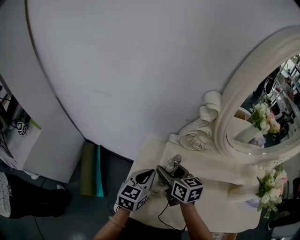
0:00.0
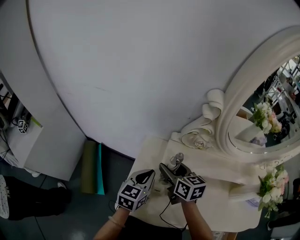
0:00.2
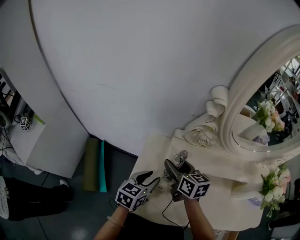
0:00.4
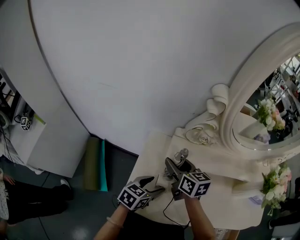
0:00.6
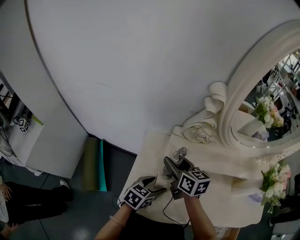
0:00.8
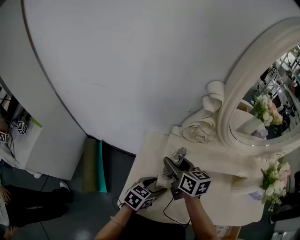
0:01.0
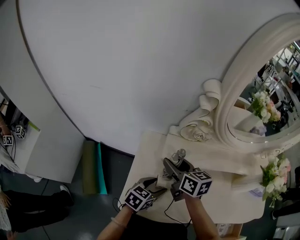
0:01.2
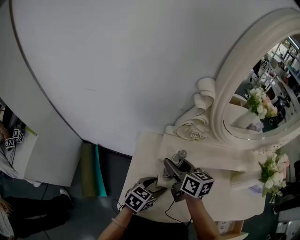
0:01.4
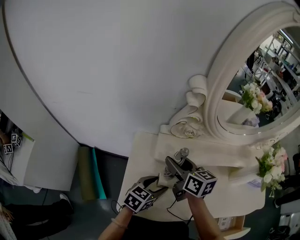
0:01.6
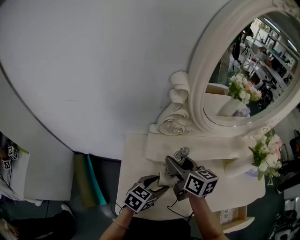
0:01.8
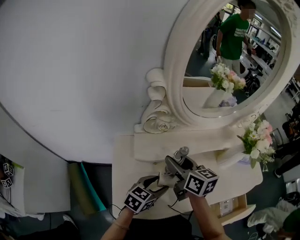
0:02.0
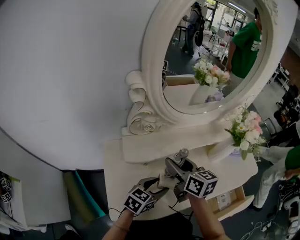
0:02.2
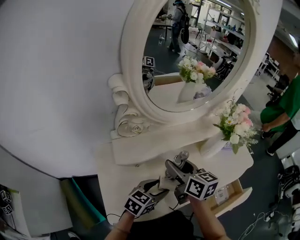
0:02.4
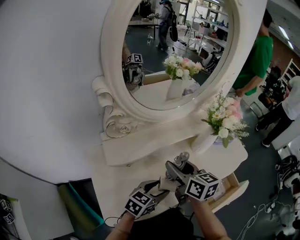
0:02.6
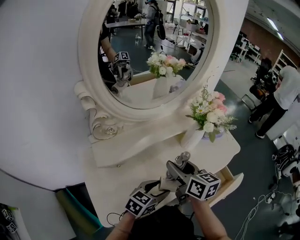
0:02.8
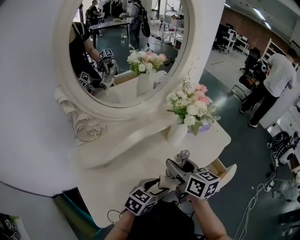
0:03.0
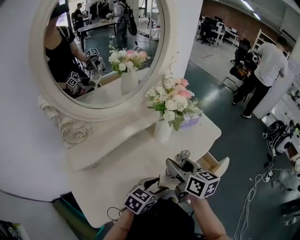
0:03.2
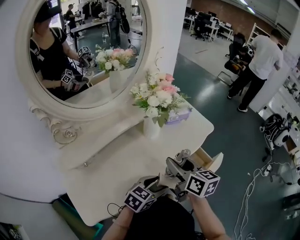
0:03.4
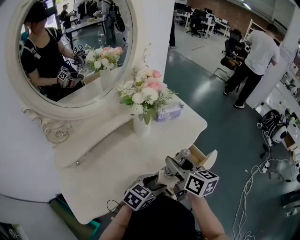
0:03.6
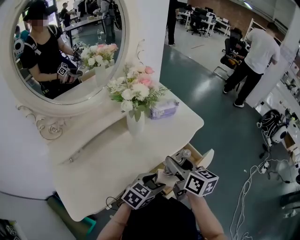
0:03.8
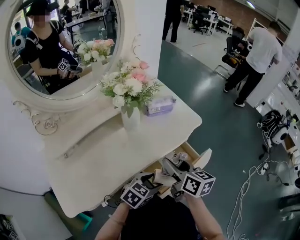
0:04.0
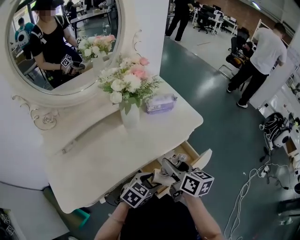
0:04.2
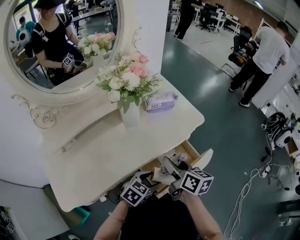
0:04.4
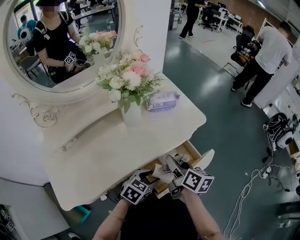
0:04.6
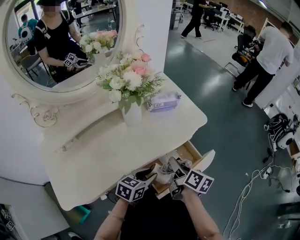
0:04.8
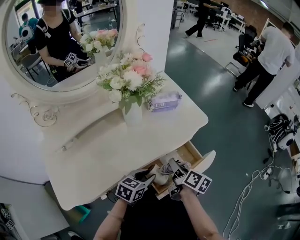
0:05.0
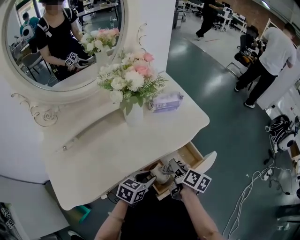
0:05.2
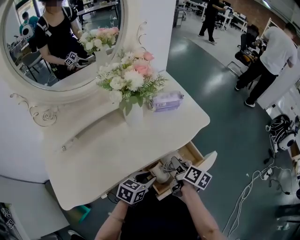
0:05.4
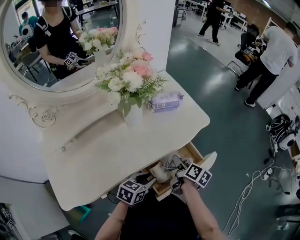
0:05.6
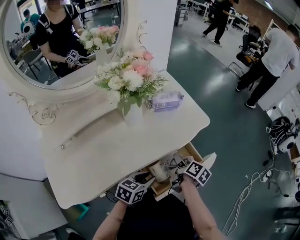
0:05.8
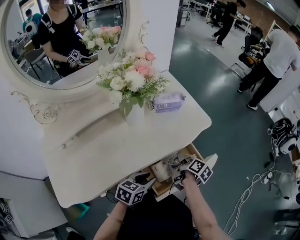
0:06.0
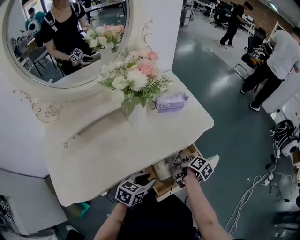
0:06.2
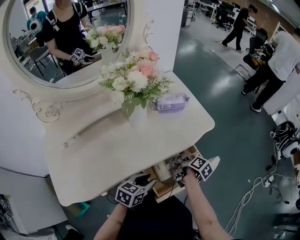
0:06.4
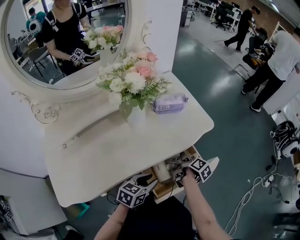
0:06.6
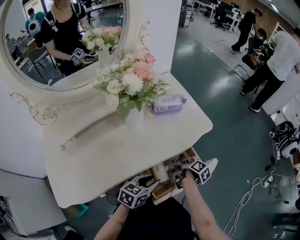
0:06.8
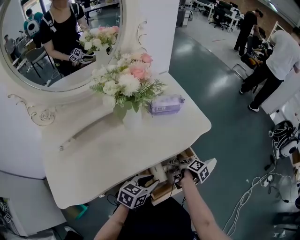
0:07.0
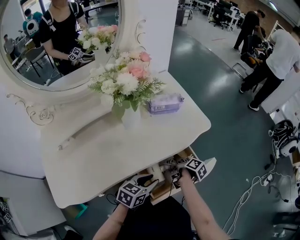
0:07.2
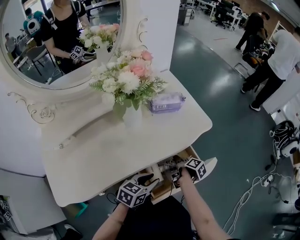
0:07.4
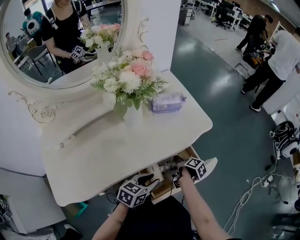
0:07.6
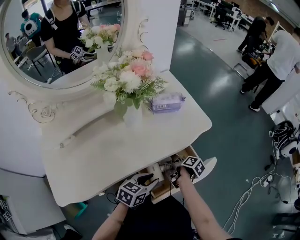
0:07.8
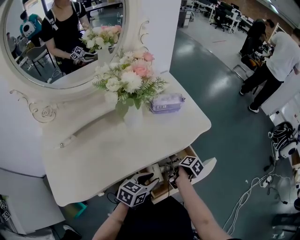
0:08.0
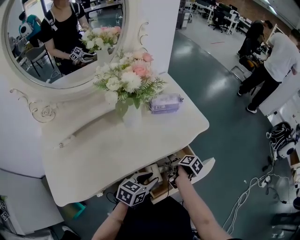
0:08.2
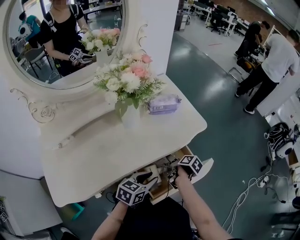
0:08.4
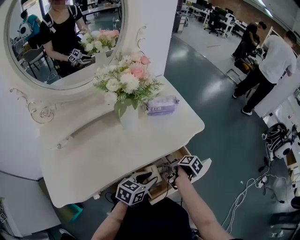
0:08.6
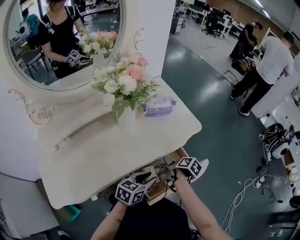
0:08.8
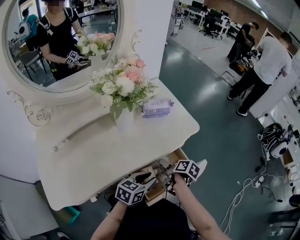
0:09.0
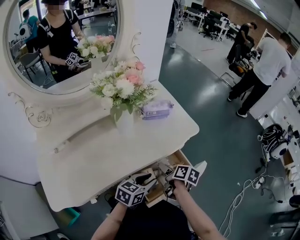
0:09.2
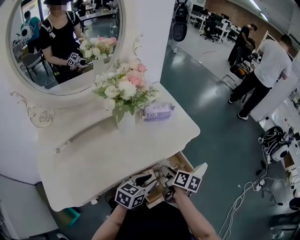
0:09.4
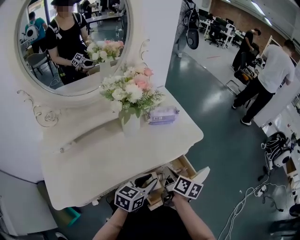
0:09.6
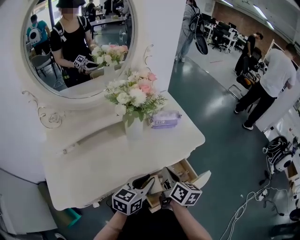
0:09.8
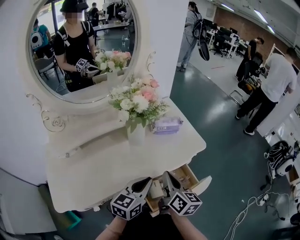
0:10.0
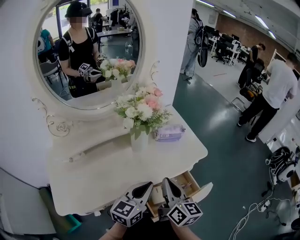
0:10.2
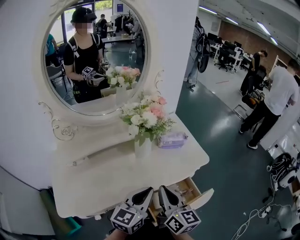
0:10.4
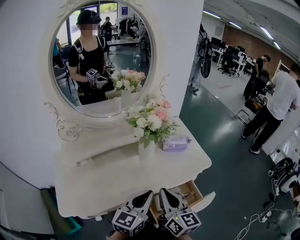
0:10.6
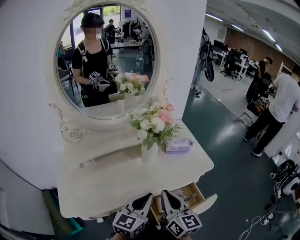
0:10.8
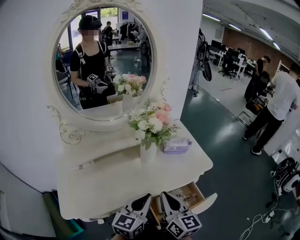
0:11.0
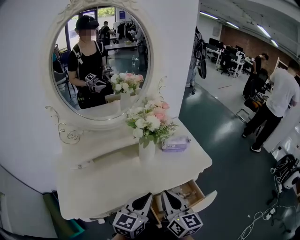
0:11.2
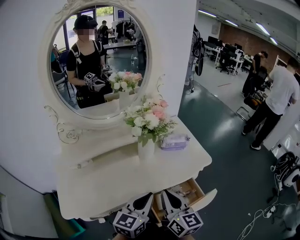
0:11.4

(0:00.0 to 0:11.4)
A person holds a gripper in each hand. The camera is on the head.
0:00.0 - 0:01.4: The left gripper moves downward, backward and to the right, roughly 10 cm, rotates some 30 degrees, and opens its fingers.
0:01.4 - 0:02.8: The right gripper ends up about 30 cm from where it was, and turns by about 40 degrees; the left gripper moves approximately 20 cm, and changes its angle by approximately 40 degrees.
0:02.8 - 0:04.2: The grippers both shift to the right by approximately 25 cm.
0:04.2 - 0:05.6: The right gripper travels downward by some 15 cm, and turns by approximately 30 degrees. The left gripper swivels some 20 degrees, and closes.
0:05.6 - 0:07.2: The right gripper goes some 10 cm downward, and swivels some 20 degrees.
0:07.2 - 0:08.6: The right gripper opens its fingers.
0:08.6 - 0:10.0: The left gripper heads upward, covering some 10 cm, rotates some 20 degrees, and closes its fingers, while the right gripper goes some 20 cm upward, tips its fingers upward by about 50 degrees, and closes.
0:10.0 - 0:11.4: The two grippers go about 5 cm upward. The right gripper swivels some 20 degrees.

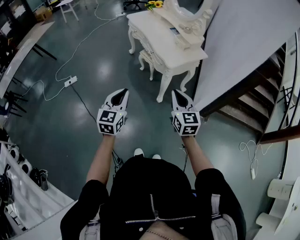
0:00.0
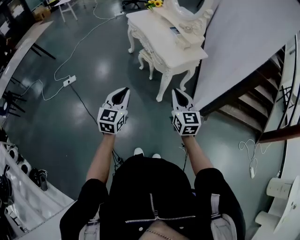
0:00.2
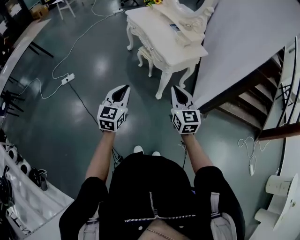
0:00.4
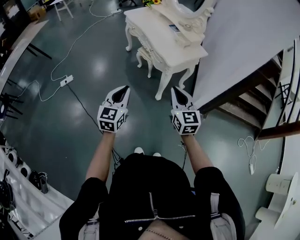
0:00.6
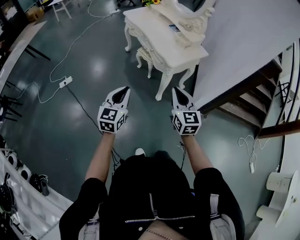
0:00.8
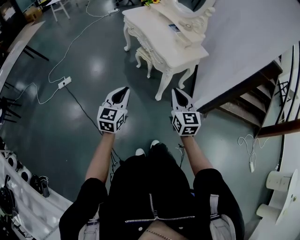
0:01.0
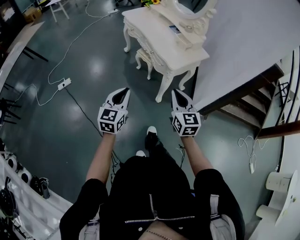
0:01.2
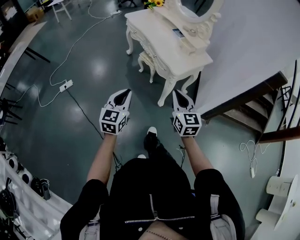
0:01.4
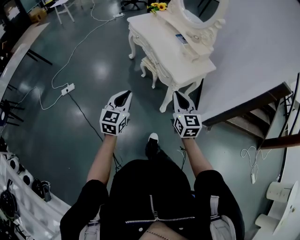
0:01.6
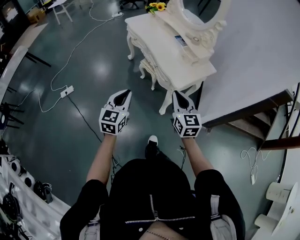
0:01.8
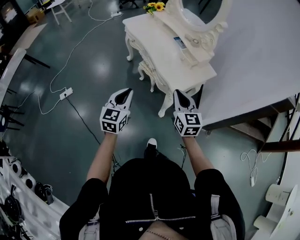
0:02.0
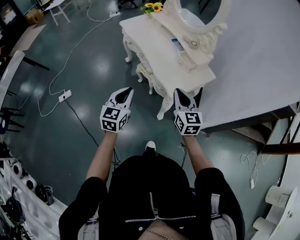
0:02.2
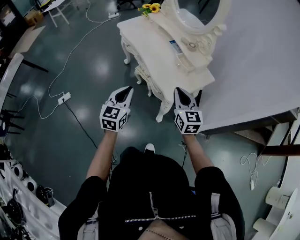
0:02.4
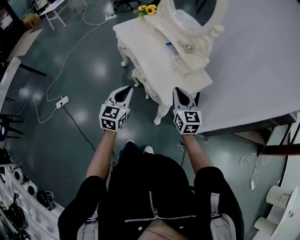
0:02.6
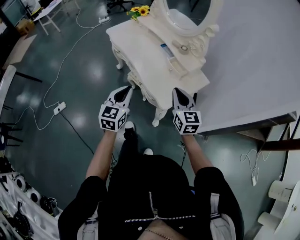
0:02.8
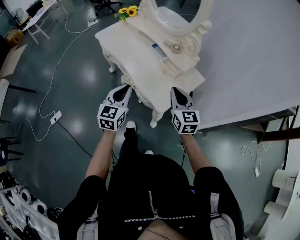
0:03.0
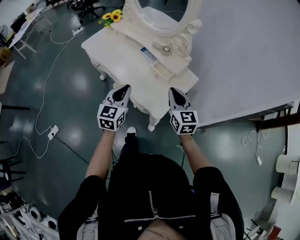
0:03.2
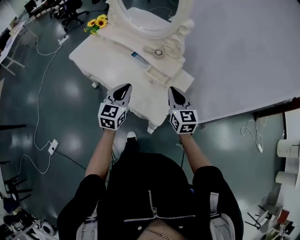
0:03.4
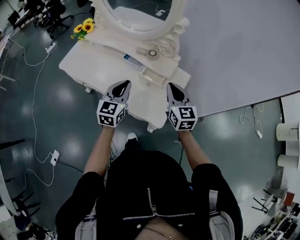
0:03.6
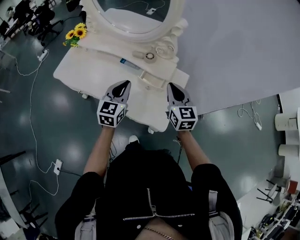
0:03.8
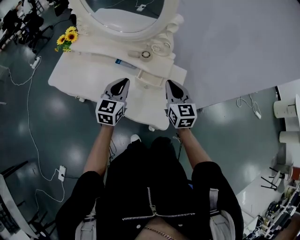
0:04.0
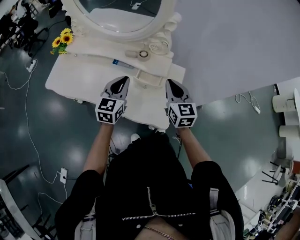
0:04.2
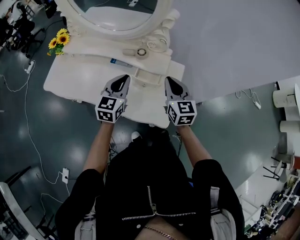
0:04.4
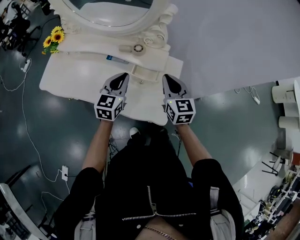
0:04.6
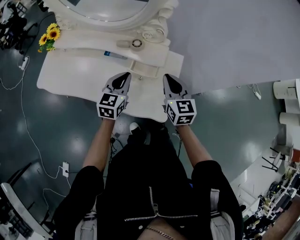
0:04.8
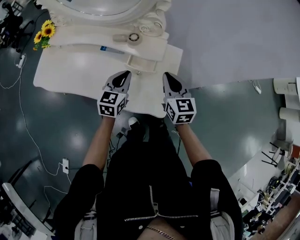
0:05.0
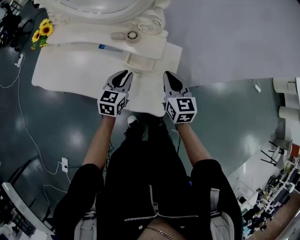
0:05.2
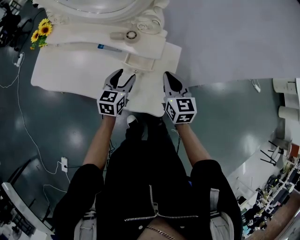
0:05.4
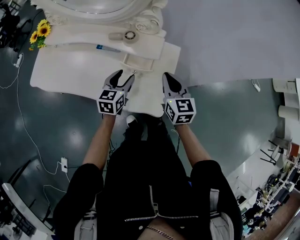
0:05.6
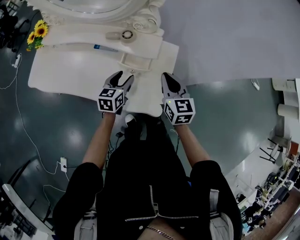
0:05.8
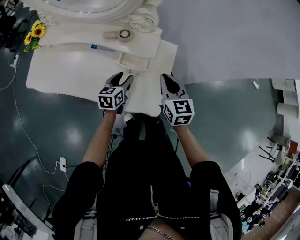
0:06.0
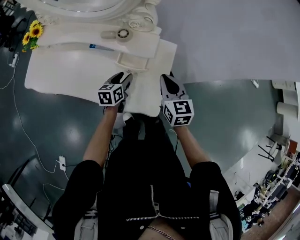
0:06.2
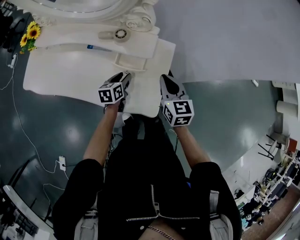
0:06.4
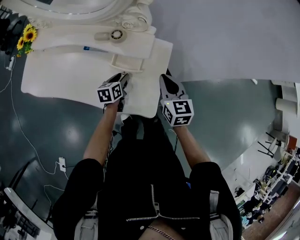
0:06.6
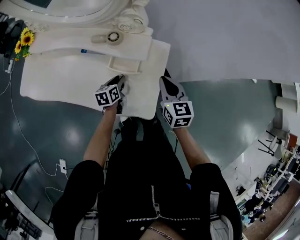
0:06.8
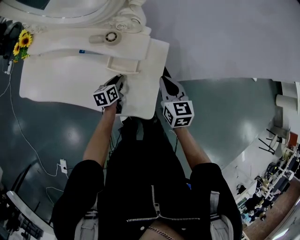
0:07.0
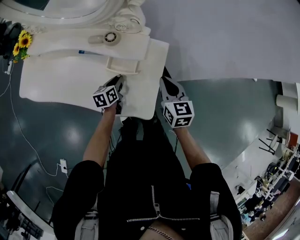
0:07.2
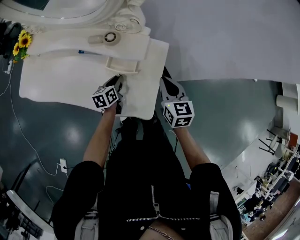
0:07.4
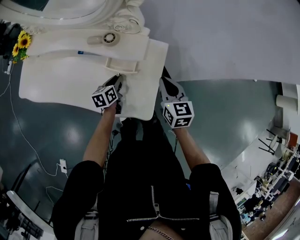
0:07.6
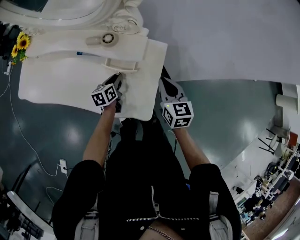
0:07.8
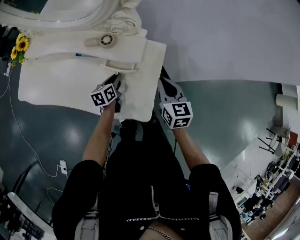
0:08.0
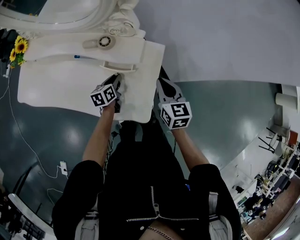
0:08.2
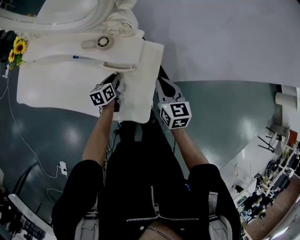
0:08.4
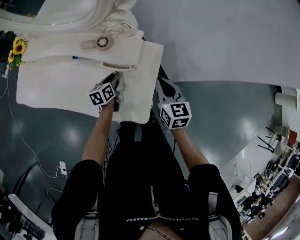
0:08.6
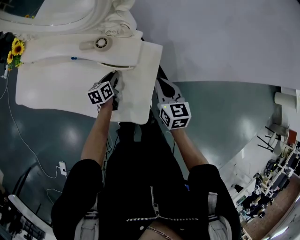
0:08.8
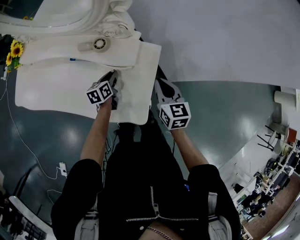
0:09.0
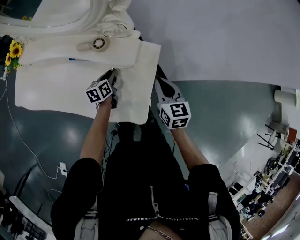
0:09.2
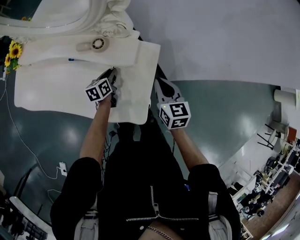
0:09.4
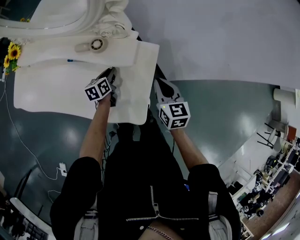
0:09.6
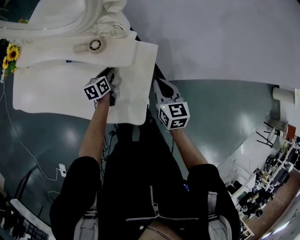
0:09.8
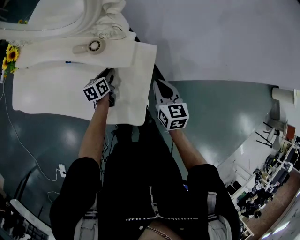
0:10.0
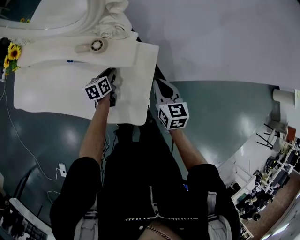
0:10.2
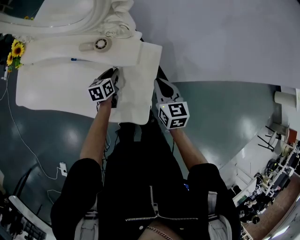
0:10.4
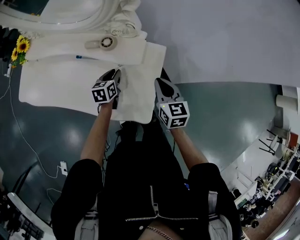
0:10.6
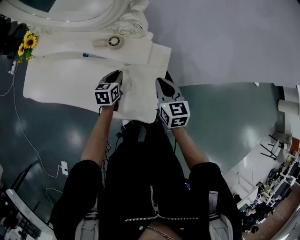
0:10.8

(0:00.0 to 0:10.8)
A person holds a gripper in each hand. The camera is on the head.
0:00.0 - 0:01.6: The left gripper travels forward by some 15 cm. Meanwhile the right gripper is displaced forward and to the left by some 15 cm.
0:01.6 - 0:03.0: The grippers both shift forward by approximately 30 cm.
0:03.0 - 0:04.6: The right gripper ends up roughly 20 cm from where it was, and changes its angle by approximately 30 degrees; the left gripper ends up some 30 cm from where it was, and swivels roughly 40 degrees.
0:04.6 - 0:06.2: The left gripper goes some 20 cm downward, turns by approximately 30 degrees, and opens up. The right gripper travels downward by approximately 5 cm.
0:06.2 - 0:07.8: The left gripper shifts by about 5 cm, and closes. The right gripper shifts by approximately 5 cm.
0:07.8 - 0:09.2: The grippers stay close to where they were, moving slightly.
0:09.2 - 0:10.8: The left gripper changes place by about 5 cm.

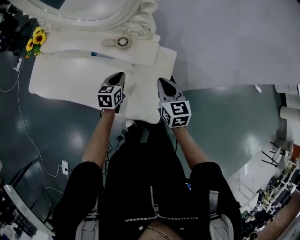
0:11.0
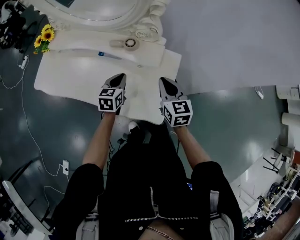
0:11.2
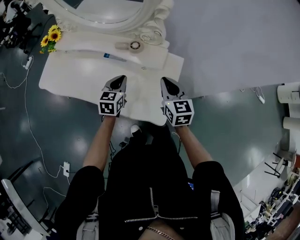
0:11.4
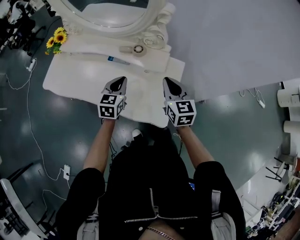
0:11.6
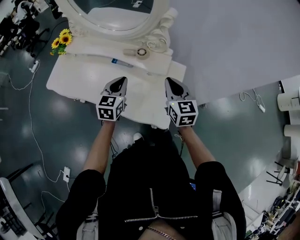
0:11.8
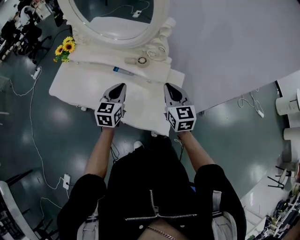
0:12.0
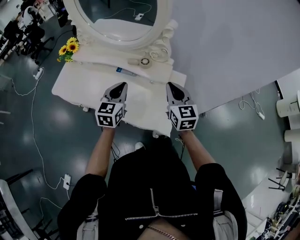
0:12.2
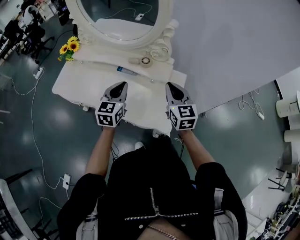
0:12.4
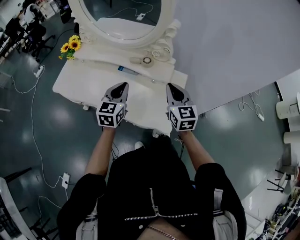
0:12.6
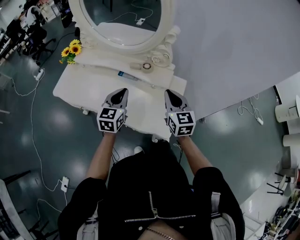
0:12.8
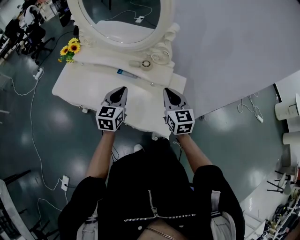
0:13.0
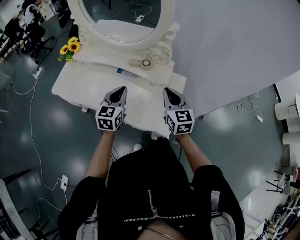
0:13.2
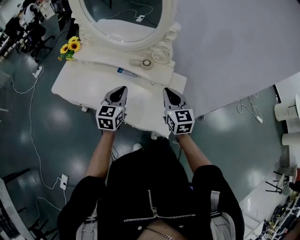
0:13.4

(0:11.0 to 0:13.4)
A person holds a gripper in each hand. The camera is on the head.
0:11.0 - 0:12.2: The right gripper heads upward, covering about 10 cm. Meanwhile the left gripper shifts approximately 20 cm upward, and rotates approximately 20 degrees.
0:12.2 - 0:13.4: The grippers stay close to where they were, moving slightly.
